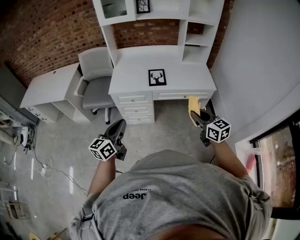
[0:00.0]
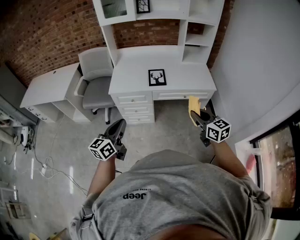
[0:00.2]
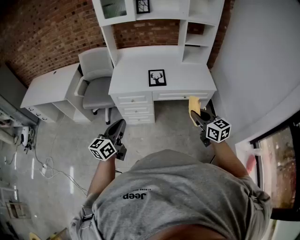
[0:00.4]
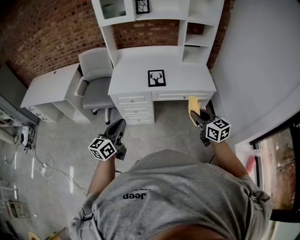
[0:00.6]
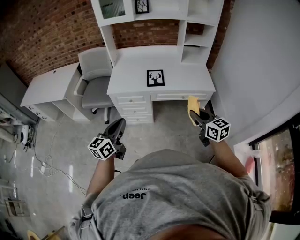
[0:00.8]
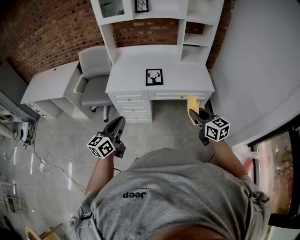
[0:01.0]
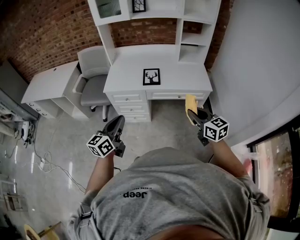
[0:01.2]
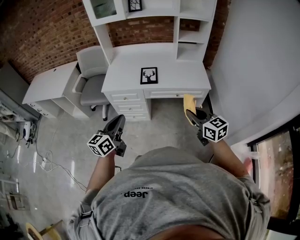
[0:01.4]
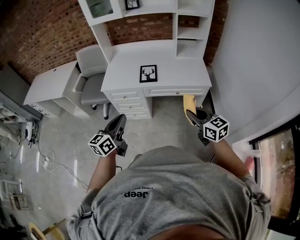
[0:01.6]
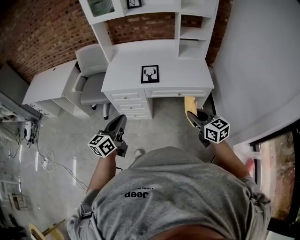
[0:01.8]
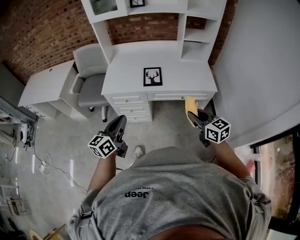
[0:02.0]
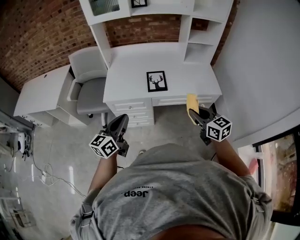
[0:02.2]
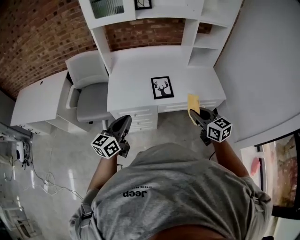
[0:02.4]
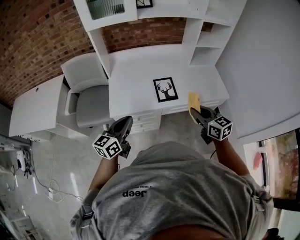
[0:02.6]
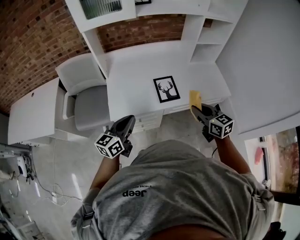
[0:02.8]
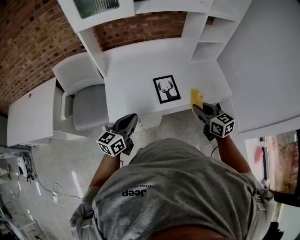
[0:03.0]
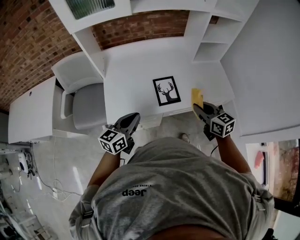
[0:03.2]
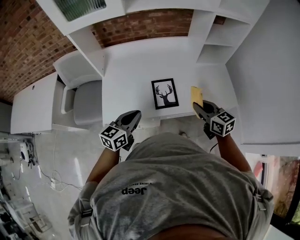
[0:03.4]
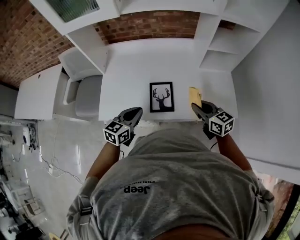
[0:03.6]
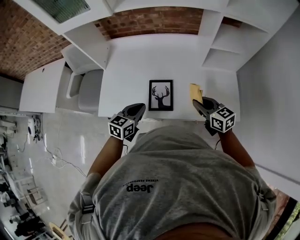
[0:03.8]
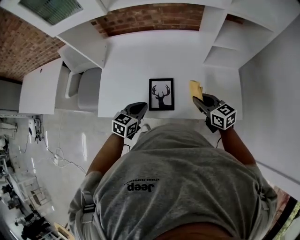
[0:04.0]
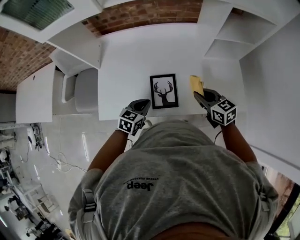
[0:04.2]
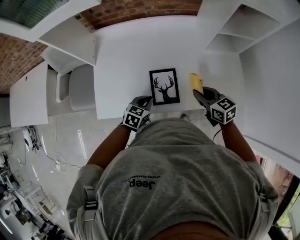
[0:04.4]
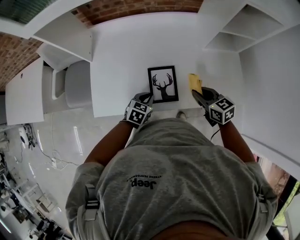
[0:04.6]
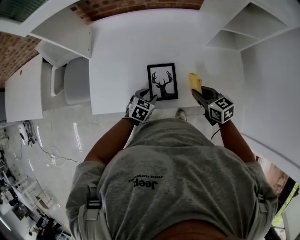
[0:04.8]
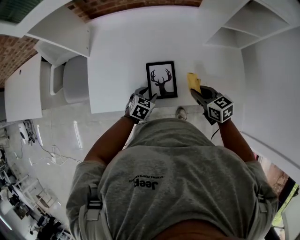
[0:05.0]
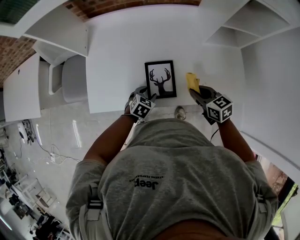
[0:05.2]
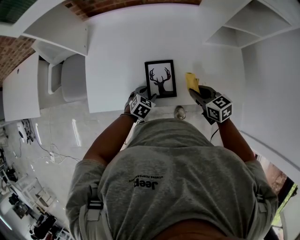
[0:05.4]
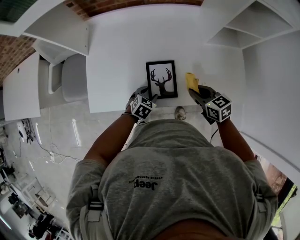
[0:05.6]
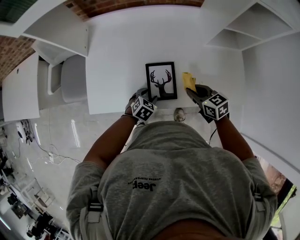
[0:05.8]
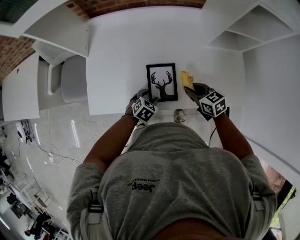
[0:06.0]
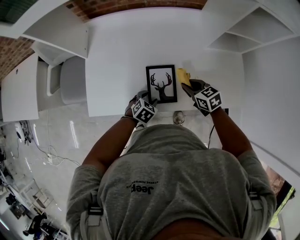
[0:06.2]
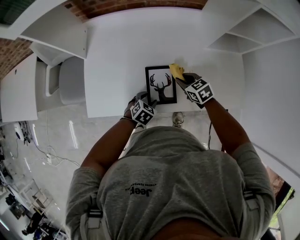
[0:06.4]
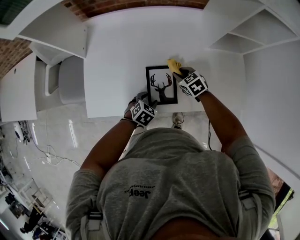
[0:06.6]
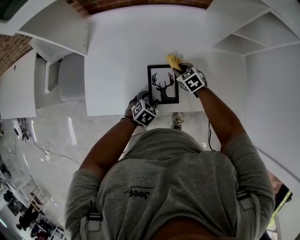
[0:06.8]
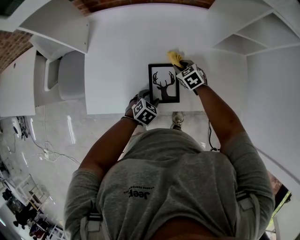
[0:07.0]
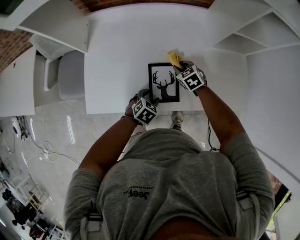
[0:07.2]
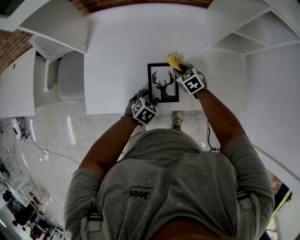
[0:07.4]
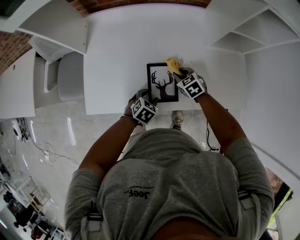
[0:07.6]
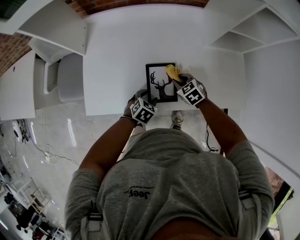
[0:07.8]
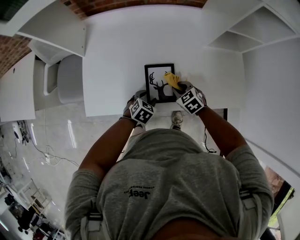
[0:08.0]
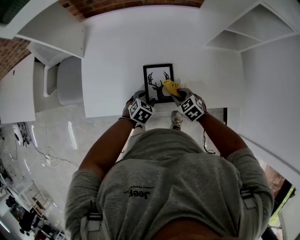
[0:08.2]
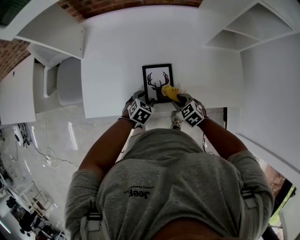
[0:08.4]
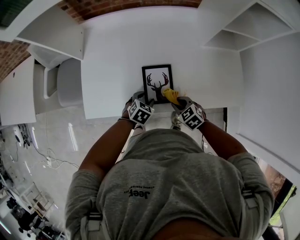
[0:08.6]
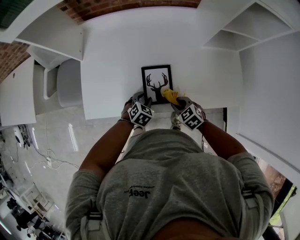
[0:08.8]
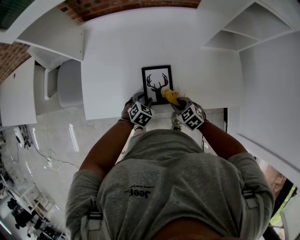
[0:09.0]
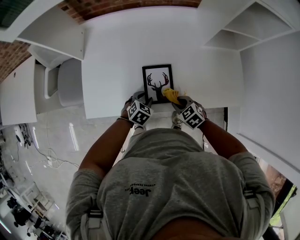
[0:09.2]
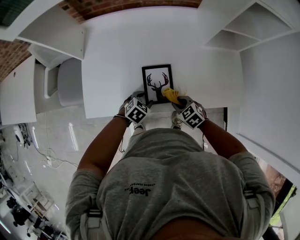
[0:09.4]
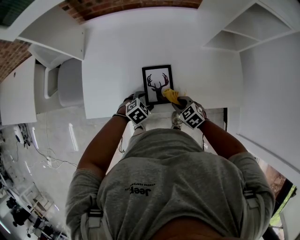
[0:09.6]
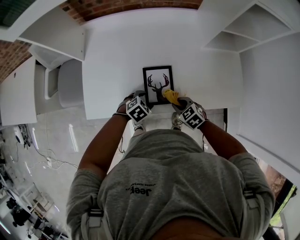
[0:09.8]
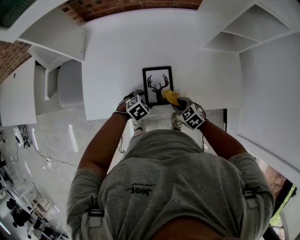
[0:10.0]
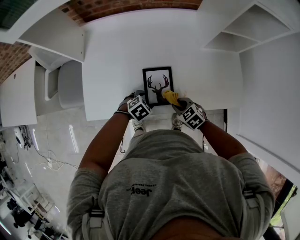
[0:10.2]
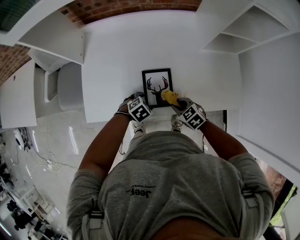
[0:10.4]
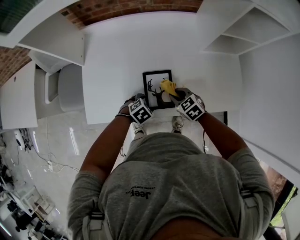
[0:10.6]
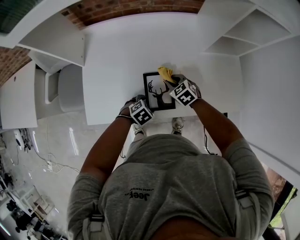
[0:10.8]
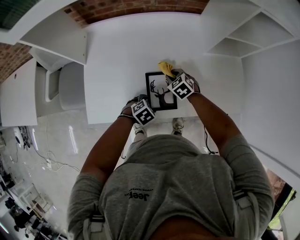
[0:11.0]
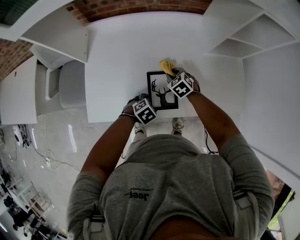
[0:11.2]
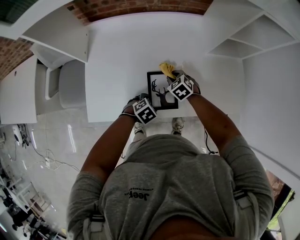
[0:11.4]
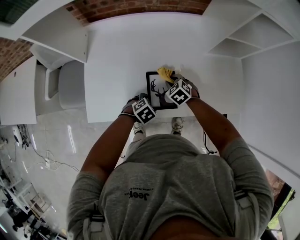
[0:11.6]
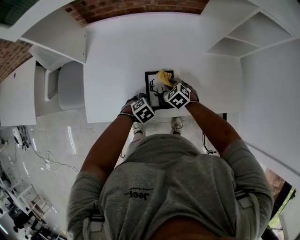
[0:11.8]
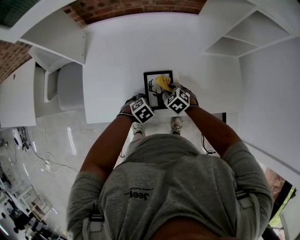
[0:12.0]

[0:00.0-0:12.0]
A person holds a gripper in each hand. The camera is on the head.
0:00.0 to 0:01.6: The two grippers go about 10 cm to the right.
0:01.6 to 0:03.0: The two grippers go about 35 cm forward and to the left. The left gripper swivels about 20 degrees.
0:03.0 to 0:04.4: The right gripper is displaced forward and downward by approximately 20 cm. Meanwhile the left gripper is displaced downward, forward and to the right by some 30 cm, and tips its fingers downward by approximately 40 degrees.
0:04.4 to 0:06.0: Both grippers travel together downward, some 10 cm. The left gripper opens up.
0:06.0 to 0:07.6: The right gripper shifts approximately 10 cm downward and forward, and changes its angle by about 20 degrees.
0:07.6 to 0:09.0: The right gripper moves backward, about 15 cm.
0:09.0 to 0:10.4: The left gripper swivels roughly 20 degrees, and opens up.

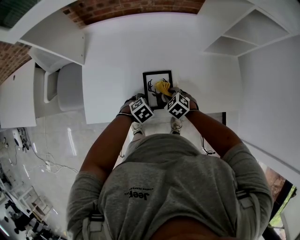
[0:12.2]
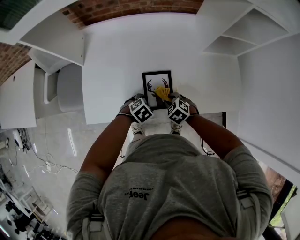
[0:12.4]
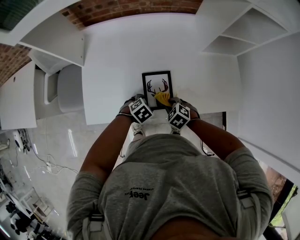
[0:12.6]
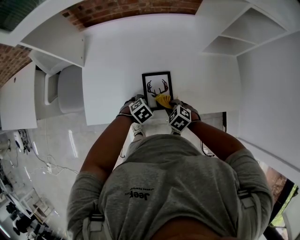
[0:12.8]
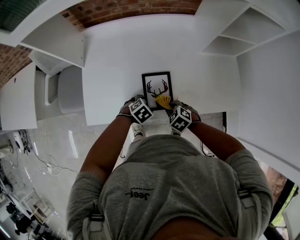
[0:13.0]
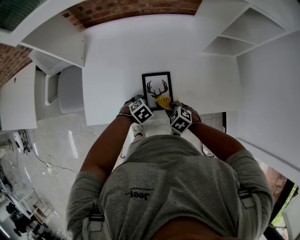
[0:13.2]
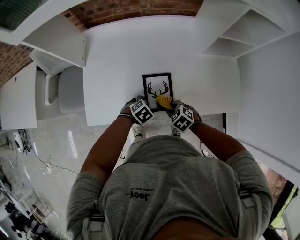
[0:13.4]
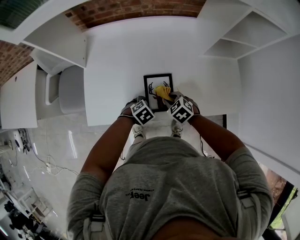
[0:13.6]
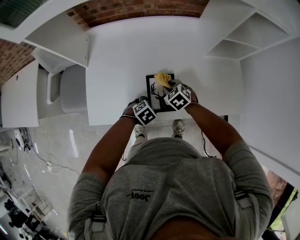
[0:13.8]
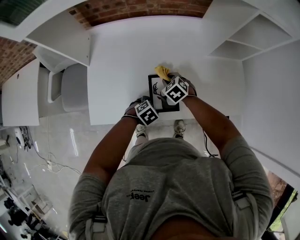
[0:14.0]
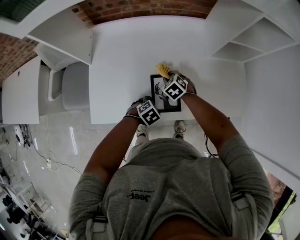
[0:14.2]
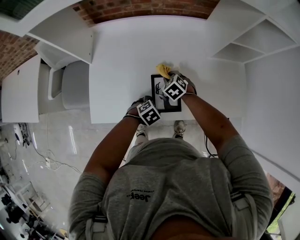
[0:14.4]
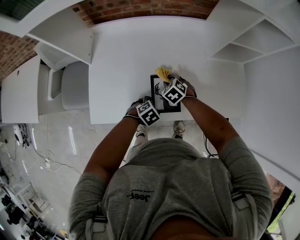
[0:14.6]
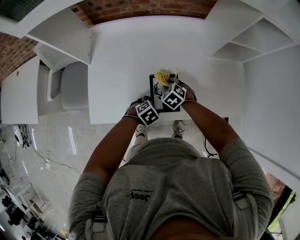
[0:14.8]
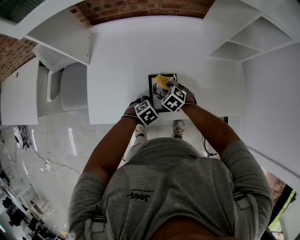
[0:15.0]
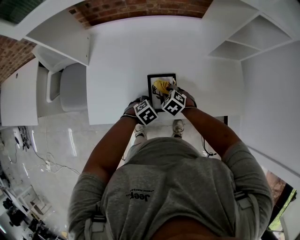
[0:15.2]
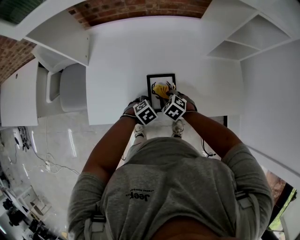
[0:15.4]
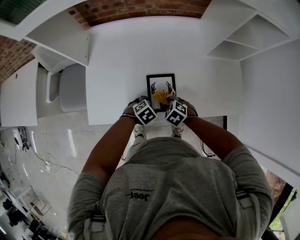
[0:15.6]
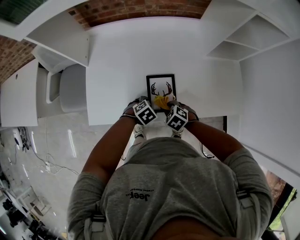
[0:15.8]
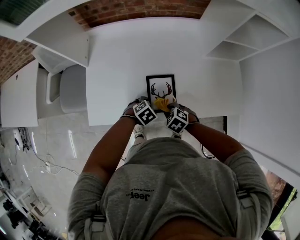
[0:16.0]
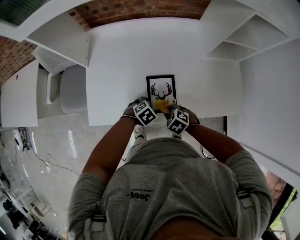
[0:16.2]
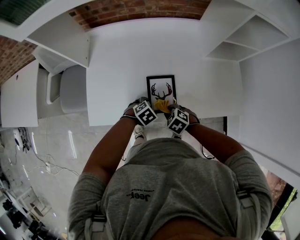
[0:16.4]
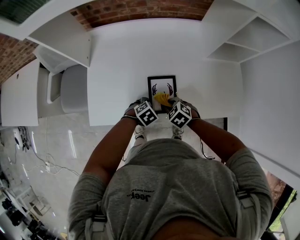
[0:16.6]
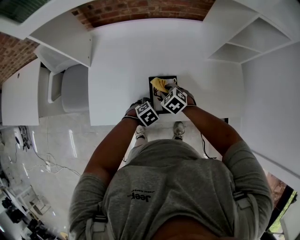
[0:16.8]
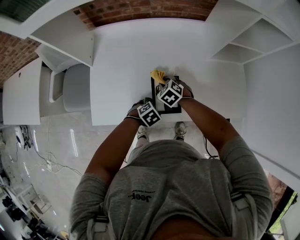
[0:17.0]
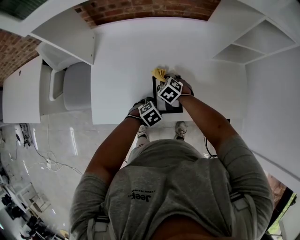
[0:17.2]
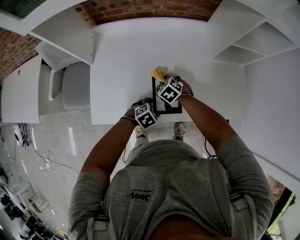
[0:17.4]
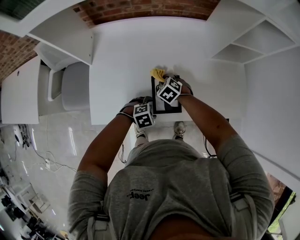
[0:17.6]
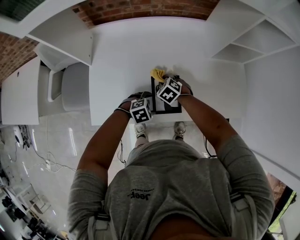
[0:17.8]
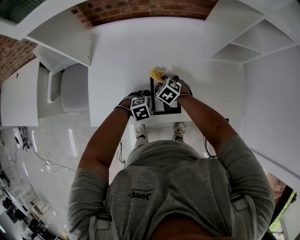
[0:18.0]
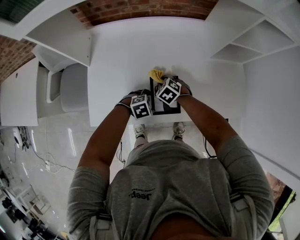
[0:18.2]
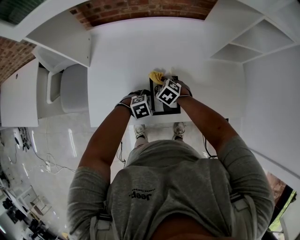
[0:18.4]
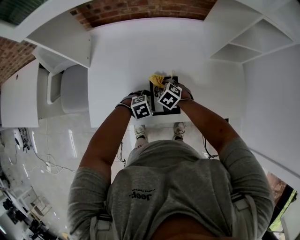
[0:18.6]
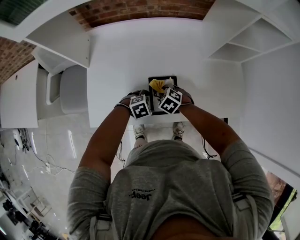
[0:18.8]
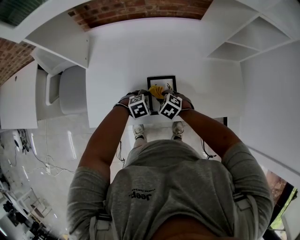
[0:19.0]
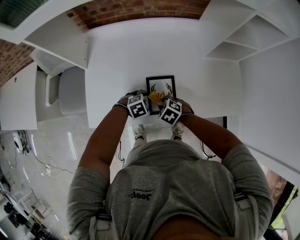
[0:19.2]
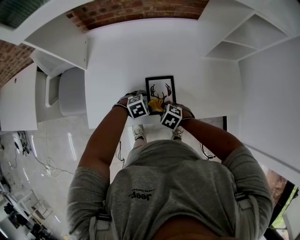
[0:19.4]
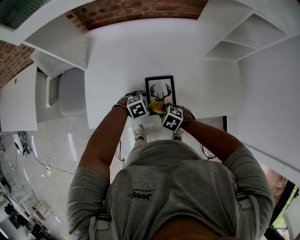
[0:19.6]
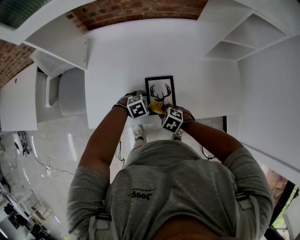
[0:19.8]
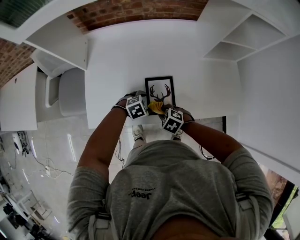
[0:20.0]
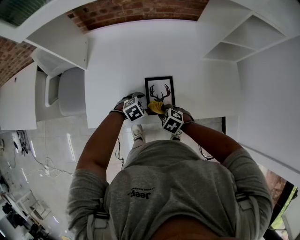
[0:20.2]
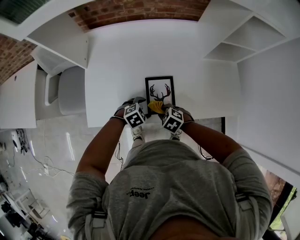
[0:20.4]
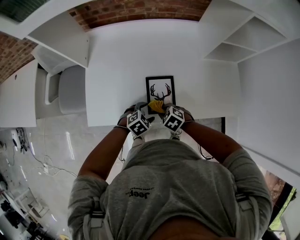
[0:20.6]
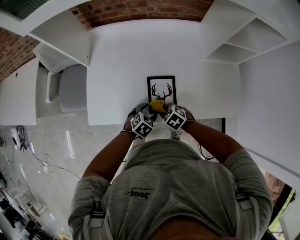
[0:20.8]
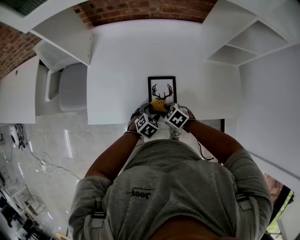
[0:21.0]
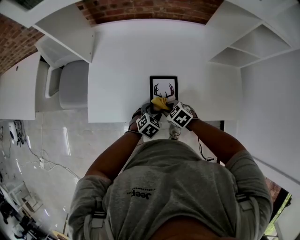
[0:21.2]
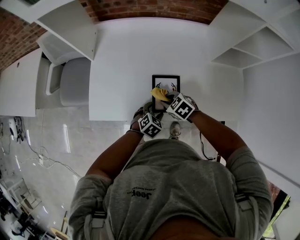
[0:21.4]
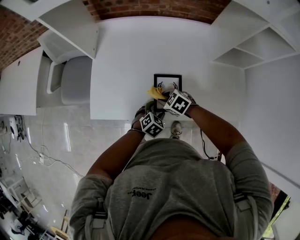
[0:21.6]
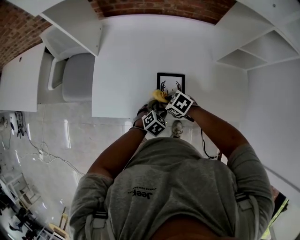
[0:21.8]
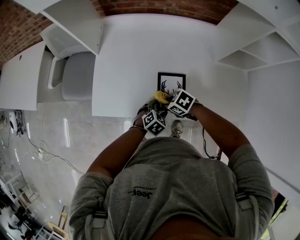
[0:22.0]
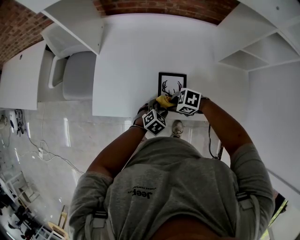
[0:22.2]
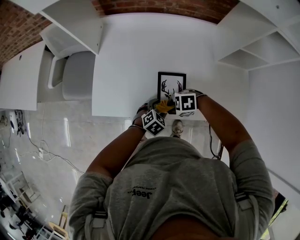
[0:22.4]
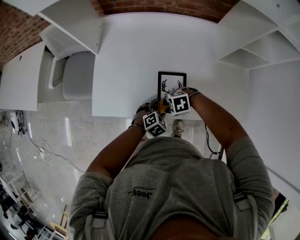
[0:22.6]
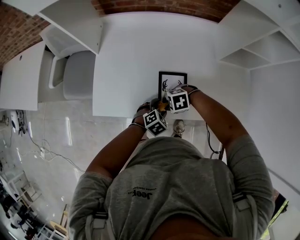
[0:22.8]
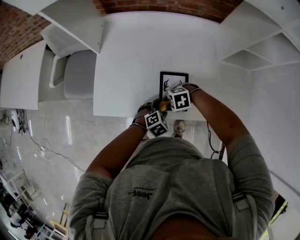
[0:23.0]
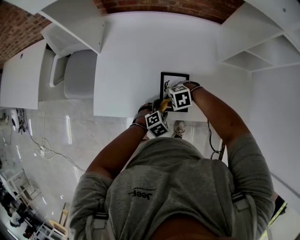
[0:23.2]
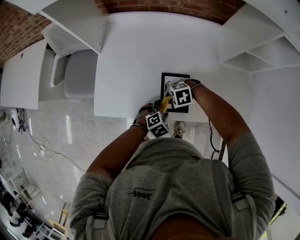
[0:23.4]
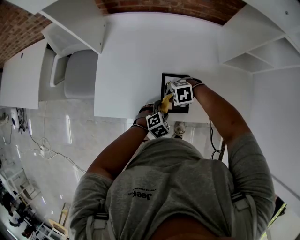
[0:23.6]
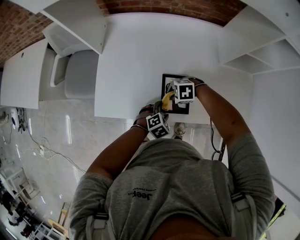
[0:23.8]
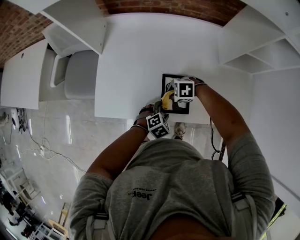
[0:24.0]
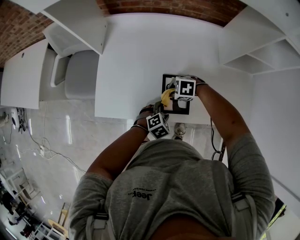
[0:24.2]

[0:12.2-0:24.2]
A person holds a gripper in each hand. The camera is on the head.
0:12.2 to 0:13.8: The right gripper changes place by approximately 5 cm.
0:13.8 to 0:15.2: The grippers stay close to where they were, moving slightly.
0:16.6 to 0:18.2: The right gripper changes place by roughly 15 cm. The left gripper rotates about 20 degrees.
0:18.2 to 0:19.8: The right gripper changes place by approximately 15 cm.
0:19.8 to 0:21.2: The left gripper swivels some 40 degrees.
0:21.2 to 0:22.6: The right gripper rotates some 50 degrees.
0:22.6 to 0:24.2: The right gripper changes place by about 10 cm.
